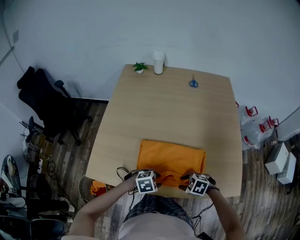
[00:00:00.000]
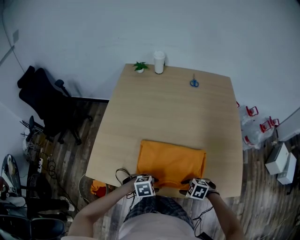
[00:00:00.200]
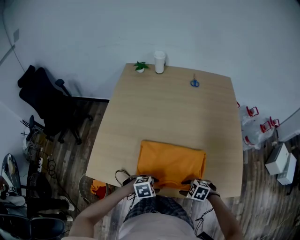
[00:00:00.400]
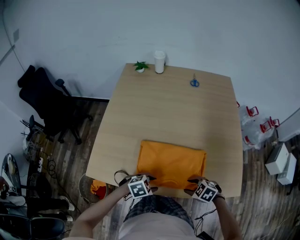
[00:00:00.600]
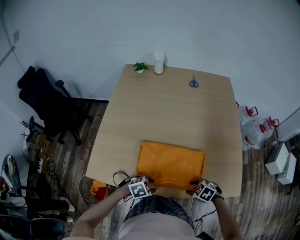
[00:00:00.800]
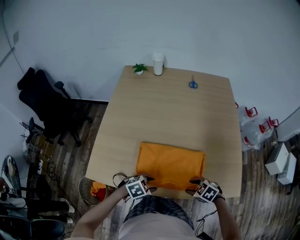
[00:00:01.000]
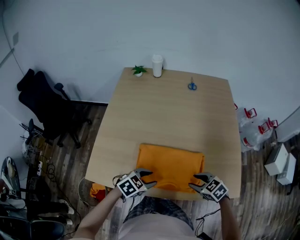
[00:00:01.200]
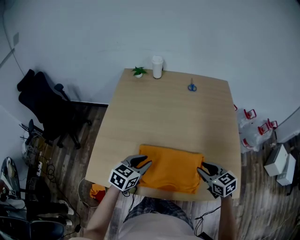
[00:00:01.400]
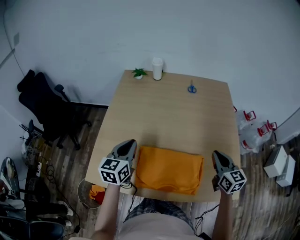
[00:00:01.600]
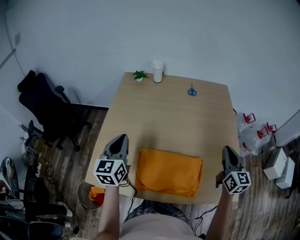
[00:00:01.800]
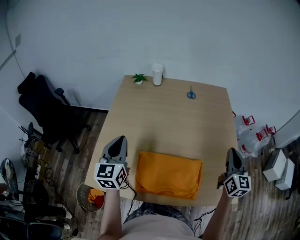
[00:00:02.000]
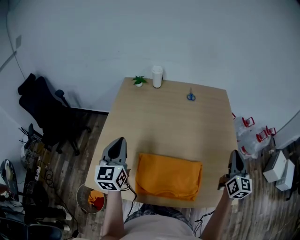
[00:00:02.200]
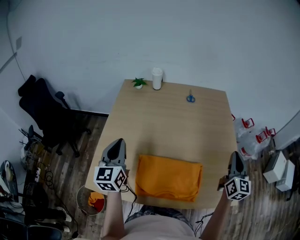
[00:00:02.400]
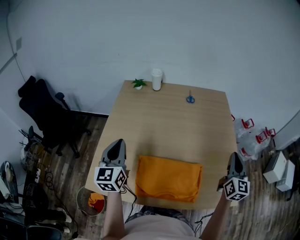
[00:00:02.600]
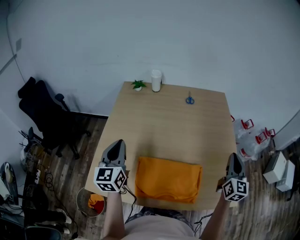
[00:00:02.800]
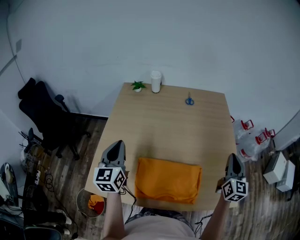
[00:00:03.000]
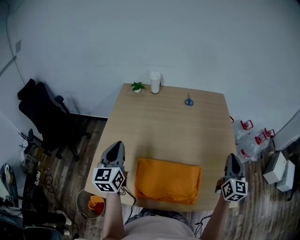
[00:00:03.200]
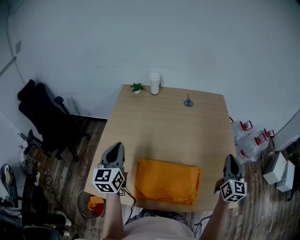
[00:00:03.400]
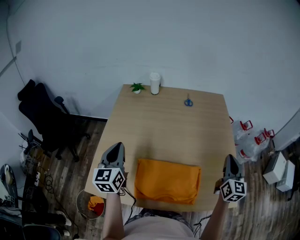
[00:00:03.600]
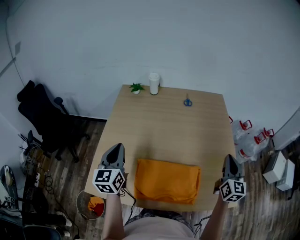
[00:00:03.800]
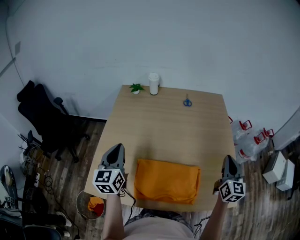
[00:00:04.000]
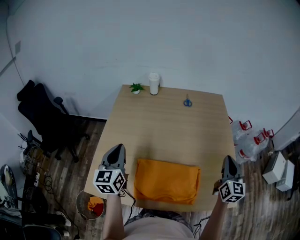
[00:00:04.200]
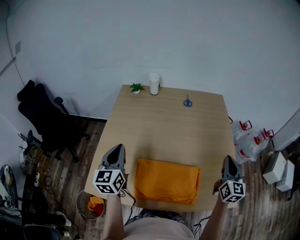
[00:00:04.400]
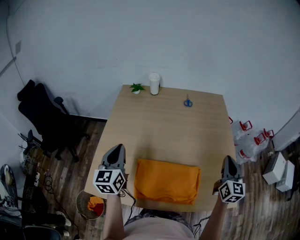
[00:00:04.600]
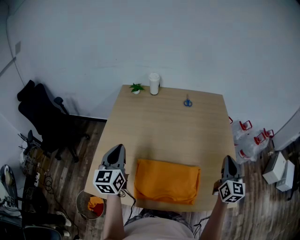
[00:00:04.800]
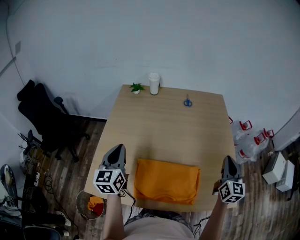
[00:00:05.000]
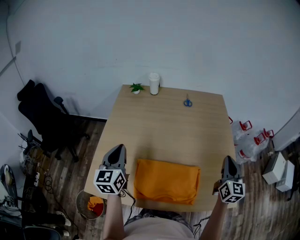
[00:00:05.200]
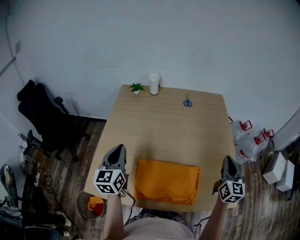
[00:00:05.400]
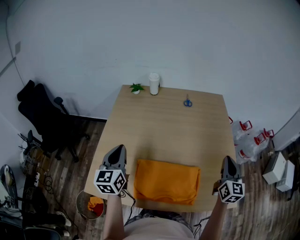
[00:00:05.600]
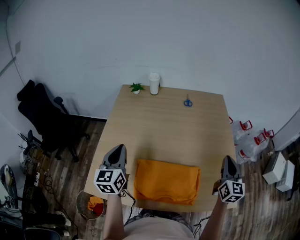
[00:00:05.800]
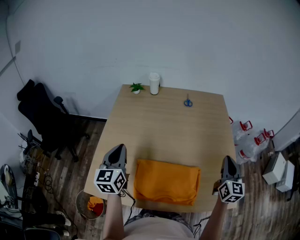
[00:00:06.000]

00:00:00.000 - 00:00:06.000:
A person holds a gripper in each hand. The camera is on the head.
00:00:00.000 - 00:00:01.600: Both grippers travel together upward, approximately 20 cm. The right gripper tips its fingers upward by approximately 50 degrees, and closes. Meanwhile the left gripper angles its fingers upward, by some 40 degrees, and closes up.
00:00:01.600 - 00:00:03.000: The right gripper is displaced to the right and upward by about 10 cm, and swivels some 30 degrees. Meanwhile the left gripper shifts some 5 cm upward.
00:00:03.000 - 00:00:04.400: The two grippers keep their place.
00:00:04.400 - 00:00:06.000: Neither gripper changes place.

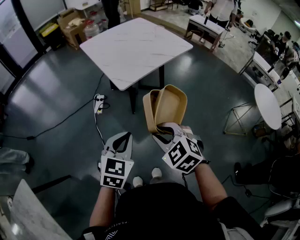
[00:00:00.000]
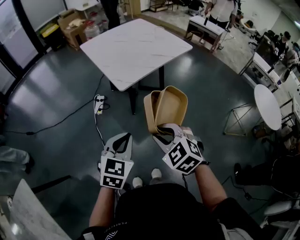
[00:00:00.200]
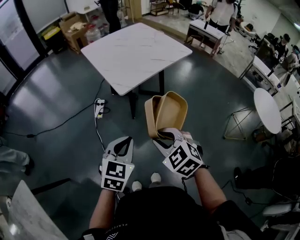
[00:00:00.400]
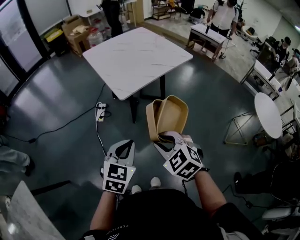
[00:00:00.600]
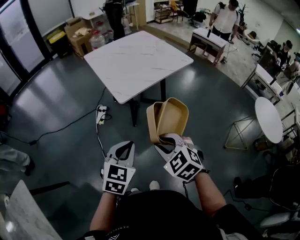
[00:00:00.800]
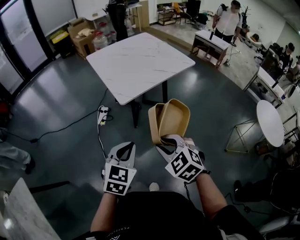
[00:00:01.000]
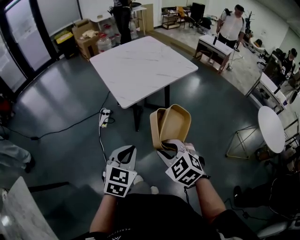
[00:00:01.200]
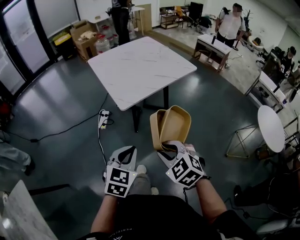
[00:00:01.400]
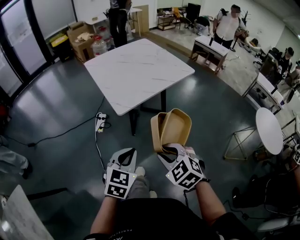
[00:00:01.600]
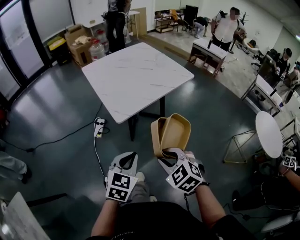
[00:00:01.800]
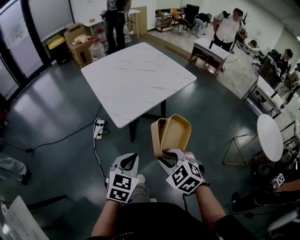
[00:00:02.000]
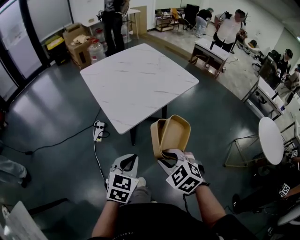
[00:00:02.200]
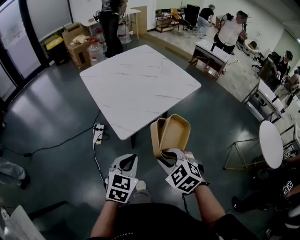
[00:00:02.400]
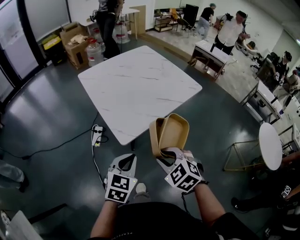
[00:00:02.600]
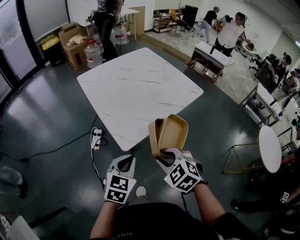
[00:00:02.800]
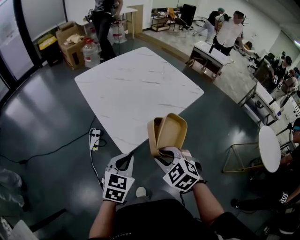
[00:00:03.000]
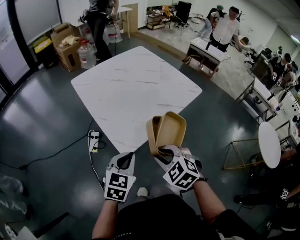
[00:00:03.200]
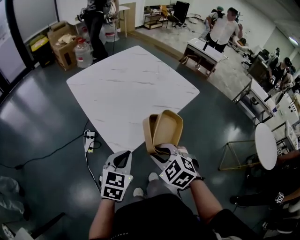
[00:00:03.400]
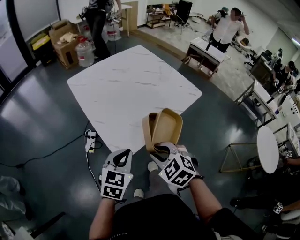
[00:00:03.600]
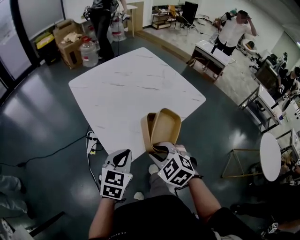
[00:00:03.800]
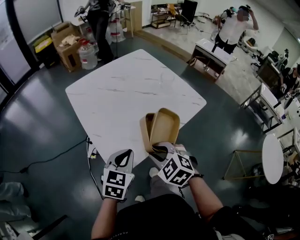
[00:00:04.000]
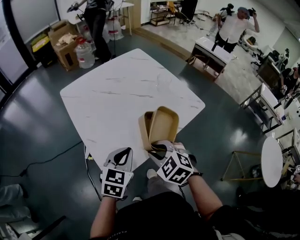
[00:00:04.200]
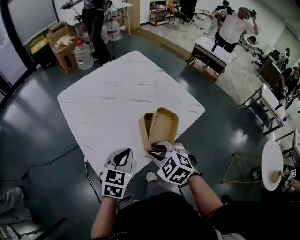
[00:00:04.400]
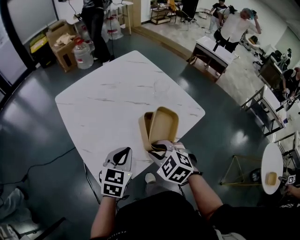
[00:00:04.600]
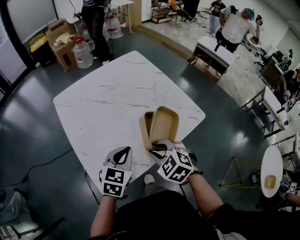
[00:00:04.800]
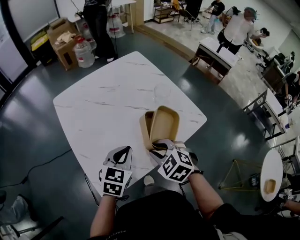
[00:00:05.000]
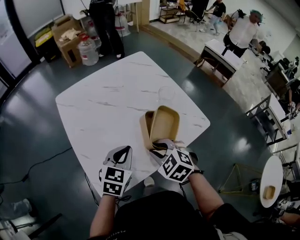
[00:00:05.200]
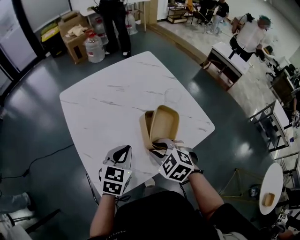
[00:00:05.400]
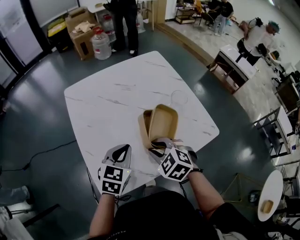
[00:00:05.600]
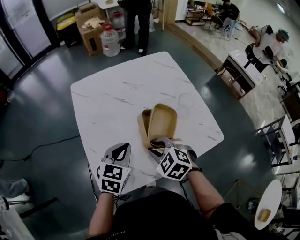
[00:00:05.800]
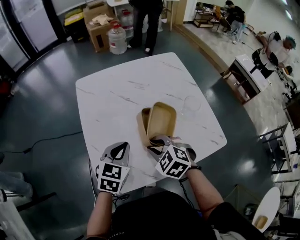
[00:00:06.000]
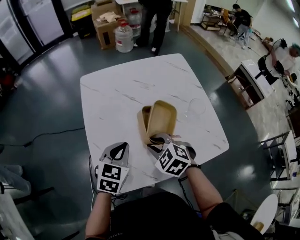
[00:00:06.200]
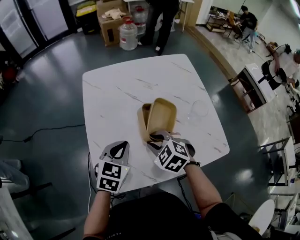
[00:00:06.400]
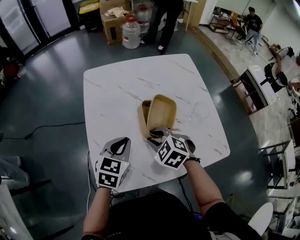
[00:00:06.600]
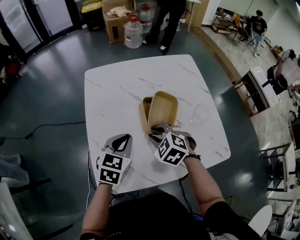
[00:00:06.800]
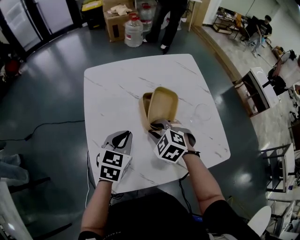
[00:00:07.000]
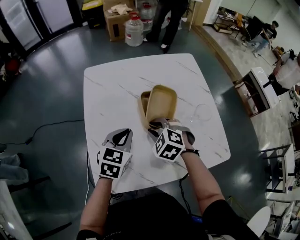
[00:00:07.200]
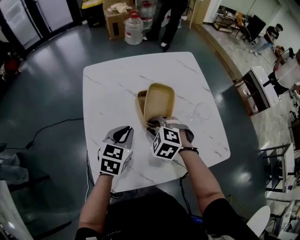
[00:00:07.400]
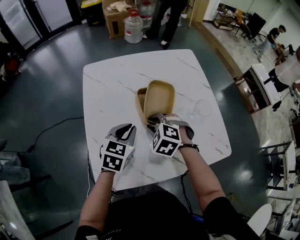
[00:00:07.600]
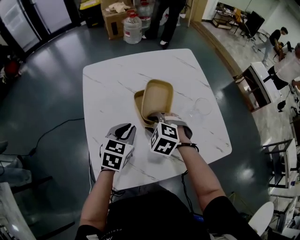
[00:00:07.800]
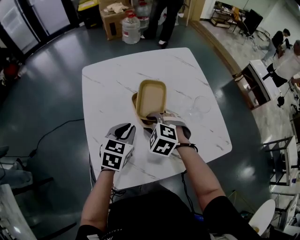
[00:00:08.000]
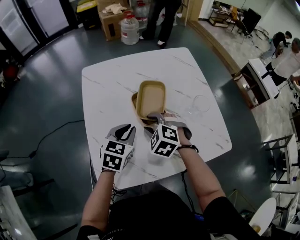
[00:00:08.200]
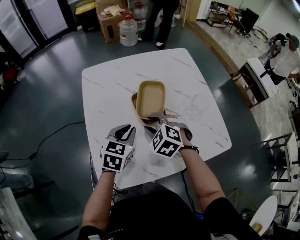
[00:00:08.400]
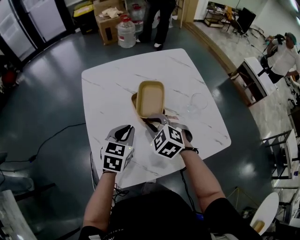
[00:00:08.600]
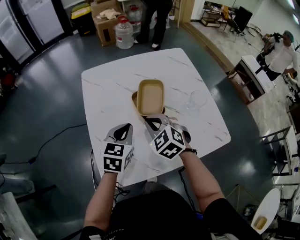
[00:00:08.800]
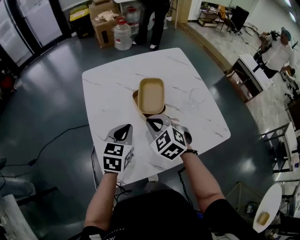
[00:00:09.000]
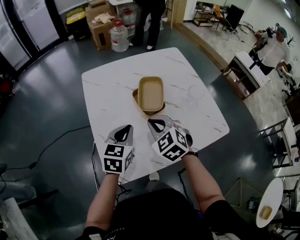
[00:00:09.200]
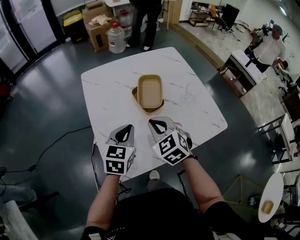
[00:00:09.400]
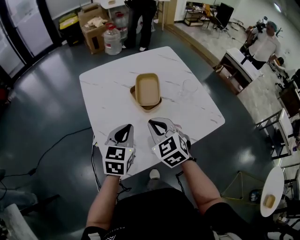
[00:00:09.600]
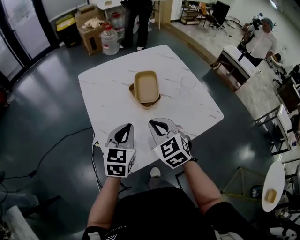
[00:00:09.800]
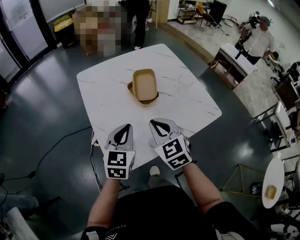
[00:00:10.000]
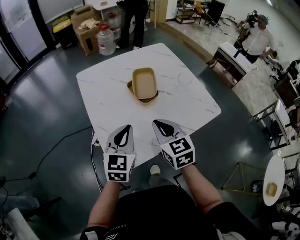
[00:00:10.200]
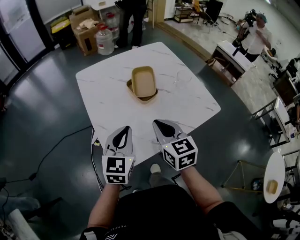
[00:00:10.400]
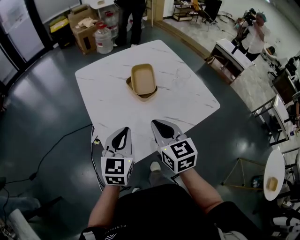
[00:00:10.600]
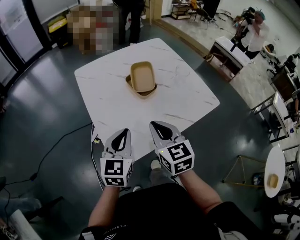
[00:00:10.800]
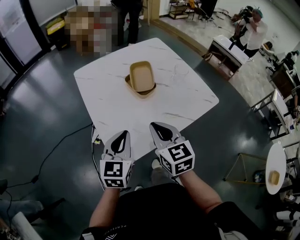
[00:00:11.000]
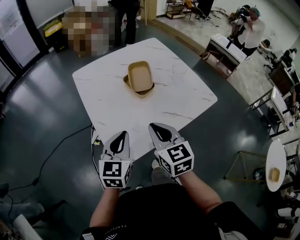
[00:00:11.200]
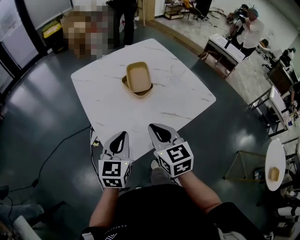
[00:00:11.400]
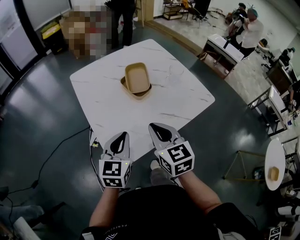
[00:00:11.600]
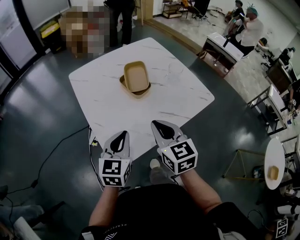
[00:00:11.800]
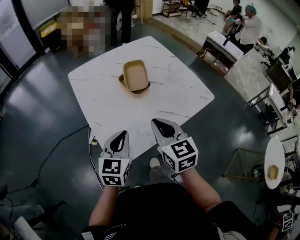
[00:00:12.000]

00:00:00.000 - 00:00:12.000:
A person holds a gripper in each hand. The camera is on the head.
00:00:00.000 - 00:00:01.600: The two grippers go some 5 cm to the right.
00:00:01.600 - 00:00:03.000: The two grippers go roughly 25 cm forward.
00:00:03.000 - 00:00:04.400: The right gripper travels forward by some 20 cm. Meanwhile the left gripper travels forward and to the right by some 25 cm.
00:00:04.400 - 00:00:06.000: The grippers both shift forward by roughly 15 cm. The right gripper rotates some 20 degrees.
00:00:06.000 - 00:00:07.600: The right gripper shifts roughly 10 cm forward, while the left gripper moves forward, roughly 5 cm.
00:00:07.600 - 00:00:09.000: The right gripper goes about 5 cm upward, changes its angle by about 20 degrees, and closes its fingers. Meanwhile the left gripper moves about 5 cm.
00:00:09.000 - 00:00:10.400: Both grippers travel together backward and upward, about 15 cm. The right gripper rotates roughly 50 degrees.
00:00:10.400 - 00:00:12.000: The grippers make only small movements.

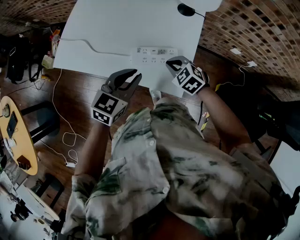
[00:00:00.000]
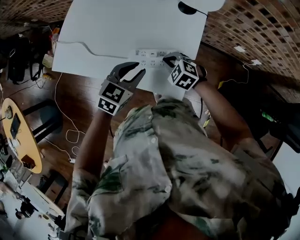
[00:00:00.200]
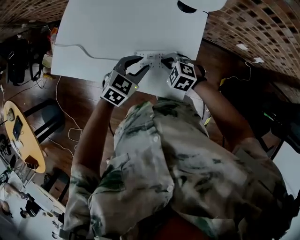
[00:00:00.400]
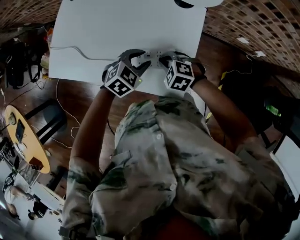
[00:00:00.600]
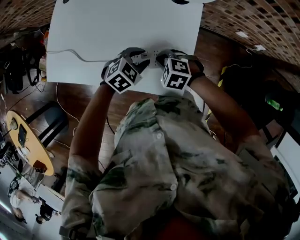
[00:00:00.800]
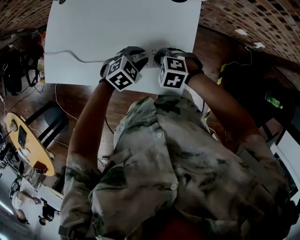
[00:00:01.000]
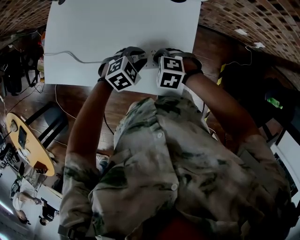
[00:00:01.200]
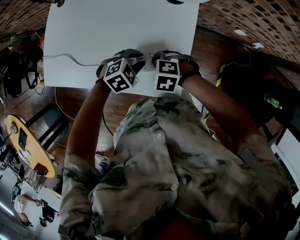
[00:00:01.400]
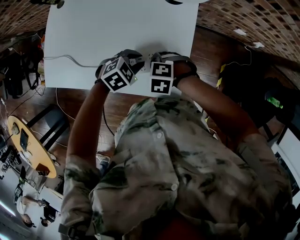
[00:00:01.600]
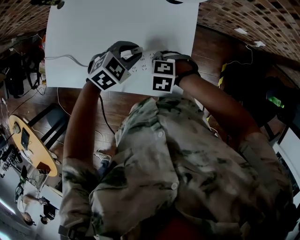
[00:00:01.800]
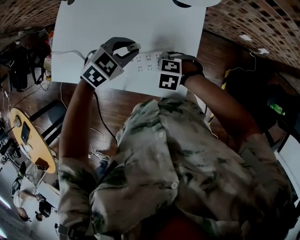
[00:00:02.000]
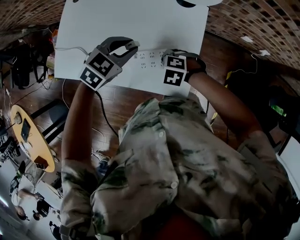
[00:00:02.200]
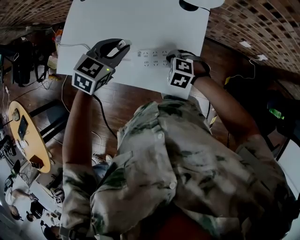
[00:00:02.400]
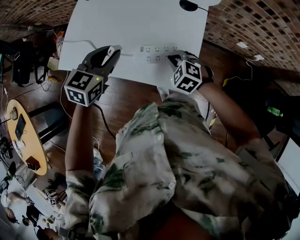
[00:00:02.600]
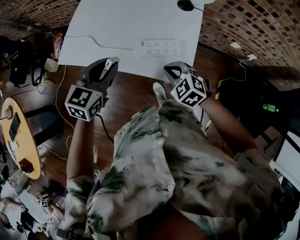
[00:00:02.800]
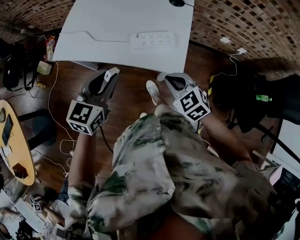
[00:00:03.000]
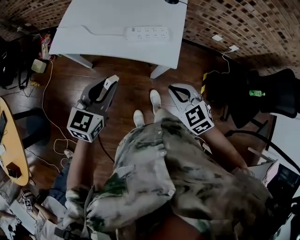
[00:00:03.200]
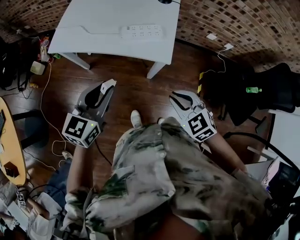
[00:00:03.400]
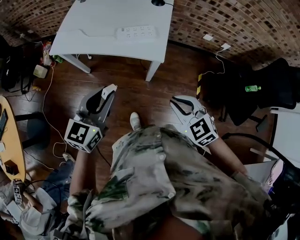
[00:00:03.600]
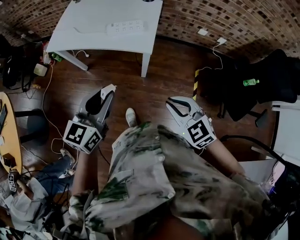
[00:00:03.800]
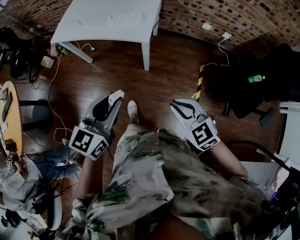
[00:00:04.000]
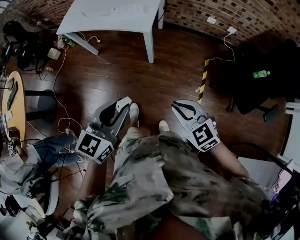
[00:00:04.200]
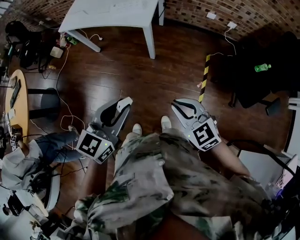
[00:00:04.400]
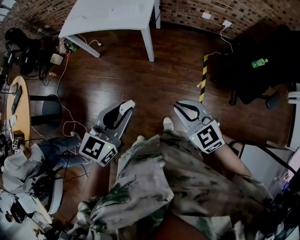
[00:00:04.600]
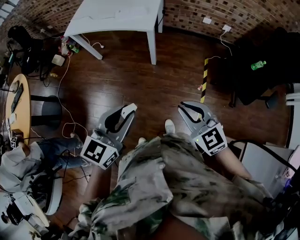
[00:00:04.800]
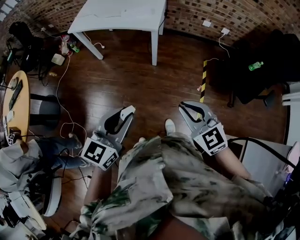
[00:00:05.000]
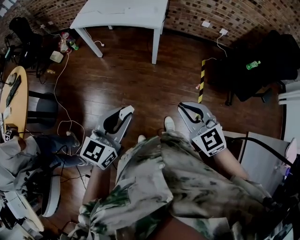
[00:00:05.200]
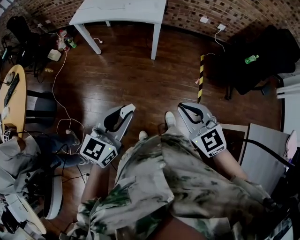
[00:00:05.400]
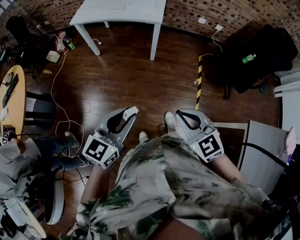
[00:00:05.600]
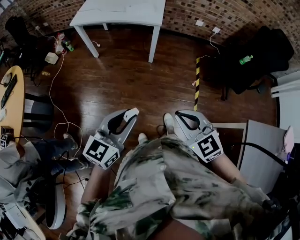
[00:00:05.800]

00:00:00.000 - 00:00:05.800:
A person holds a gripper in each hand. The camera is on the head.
00:00:00.000 - 00:00:01.400: The left gripper travels downward by roughly 15 cm, and angles its fingers downward, by approximately 30 degrees. Meanwhile the right gripper moves downward, some 5 cm, and changes its angle by some 20 degrees.
00:00:01.400 - 00:00:02.800: The right gripper goes some 10 cm upward, and rotates about 30 degrees; the left gripper travels upward by some 20 cm, and points its fingers roughly 30 degrees further upward.
00:00:02.800 - 00:00:04.400: The pair of grippers is taken backward and to the right, approximately 60 cm. The right gripper changes its angle by approximately 20 degrees.
00:00:04.400 - 00:00:05.800: Both grippers travel together backward and to the left, some 25 cm.
